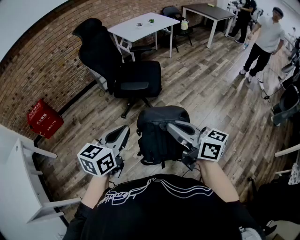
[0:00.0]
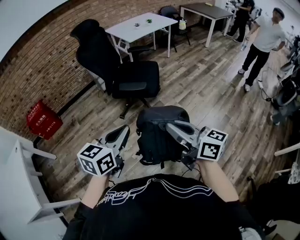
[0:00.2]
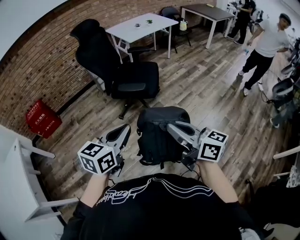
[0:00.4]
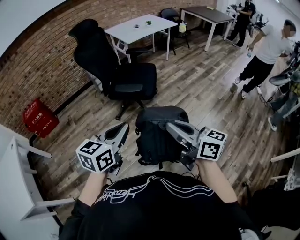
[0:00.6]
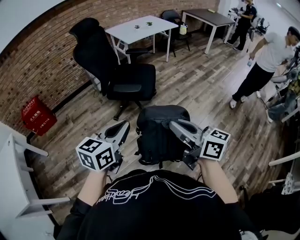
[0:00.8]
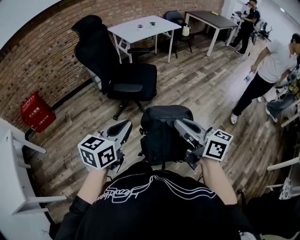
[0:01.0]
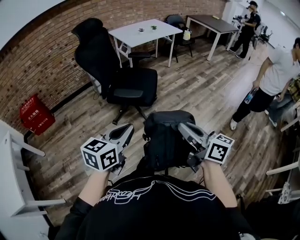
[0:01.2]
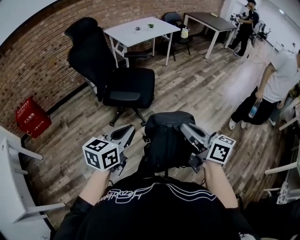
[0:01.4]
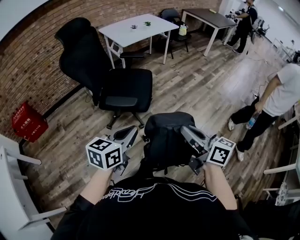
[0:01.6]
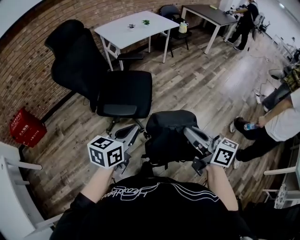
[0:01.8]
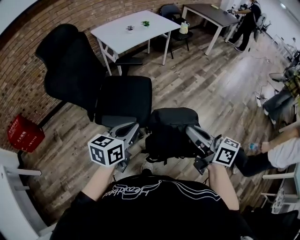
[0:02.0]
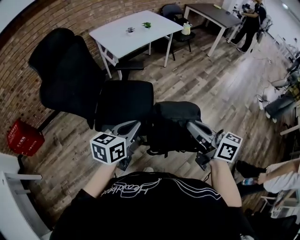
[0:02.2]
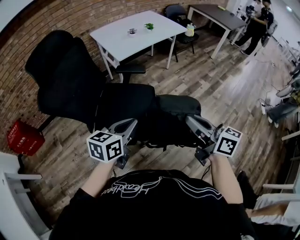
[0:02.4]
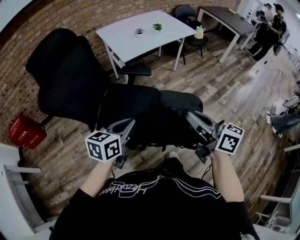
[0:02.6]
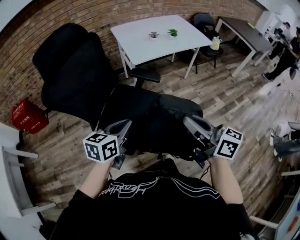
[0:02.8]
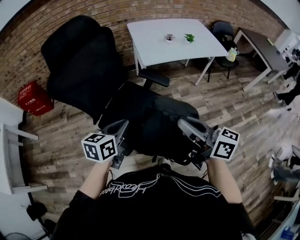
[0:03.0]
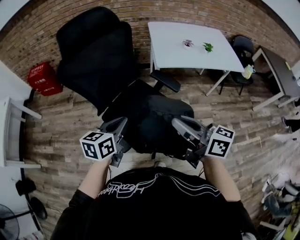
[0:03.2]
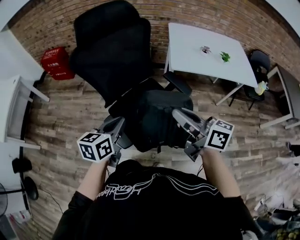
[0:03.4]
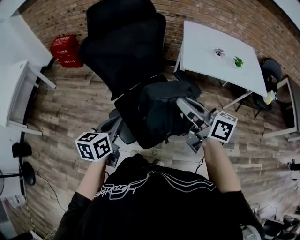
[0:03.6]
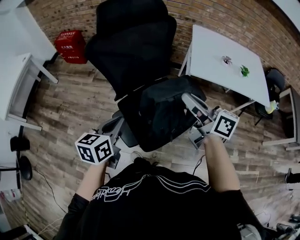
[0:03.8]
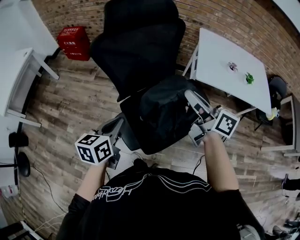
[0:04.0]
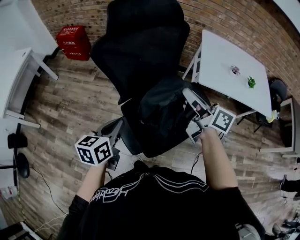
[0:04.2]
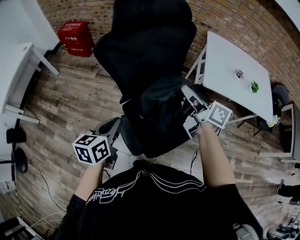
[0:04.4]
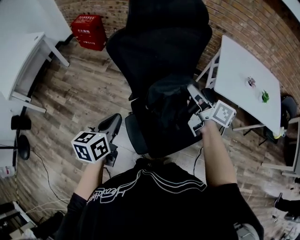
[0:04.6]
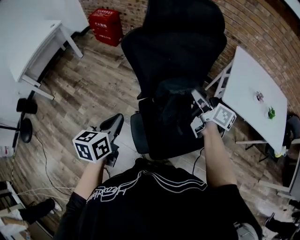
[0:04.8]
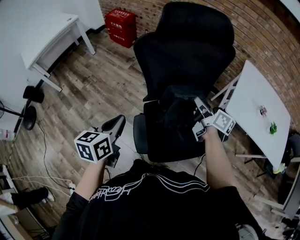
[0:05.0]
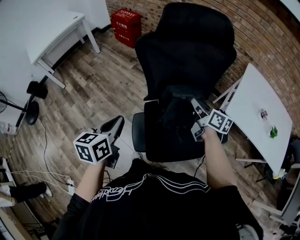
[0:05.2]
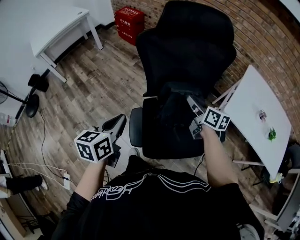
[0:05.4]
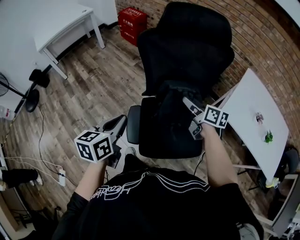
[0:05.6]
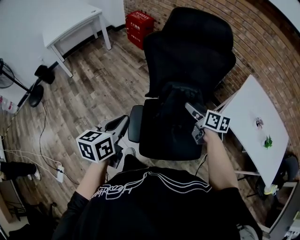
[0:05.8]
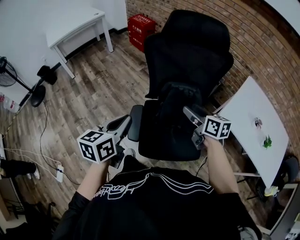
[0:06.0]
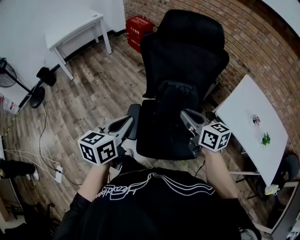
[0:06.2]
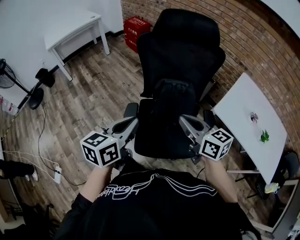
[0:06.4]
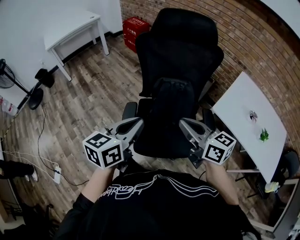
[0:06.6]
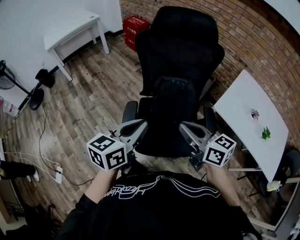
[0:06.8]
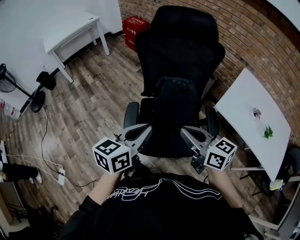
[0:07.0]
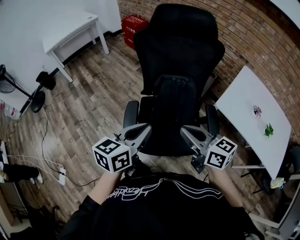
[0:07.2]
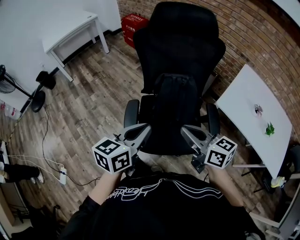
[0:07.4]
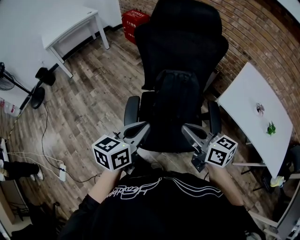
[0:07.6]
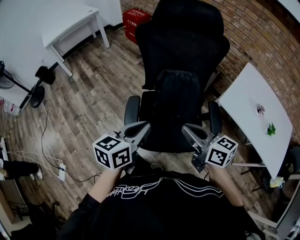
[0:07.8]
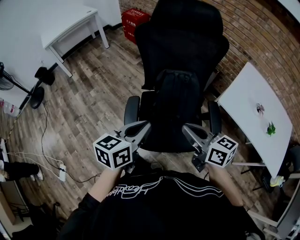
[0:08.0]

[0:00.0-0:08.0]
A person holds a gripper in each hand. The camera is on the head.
0:00.0 to 0:01.6: The left gripper shifts about 20 cm forward, to the right and downward, while the right gripper travels forward and to the right by roughly 20 cm.
0:01.6 to 0:03.2: The two grippers travel together, some 50 cm. The right gripper turns by approximately 40 degrees. The left gripper rotates about 40 degrees.
0:03.2 to 0:04.8: The right gripper moves approximately 35 cm, while the left gripper shifts by approximately 20 cm, and rotates roughly 40 degrees.
0:04.8 to 0:06.4: The right gripper heads backward, covering approximately 20 cm, rotates roughly 40 degrees, and opens and closes again. The left gripper travels backward and to the right by approximately 20 cm.
0:06.4 to 0:08.0: The right gripper shifts by some 5 cm. The left gripper moves roughly 5 cm.

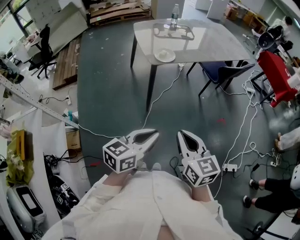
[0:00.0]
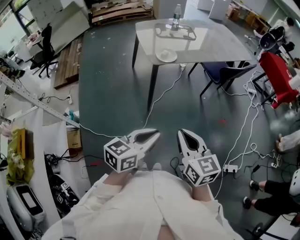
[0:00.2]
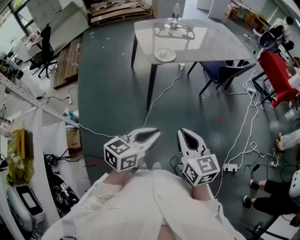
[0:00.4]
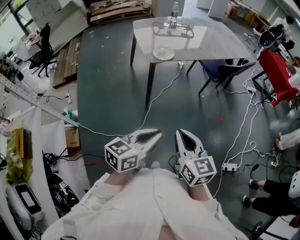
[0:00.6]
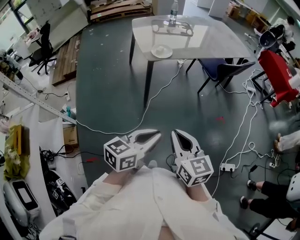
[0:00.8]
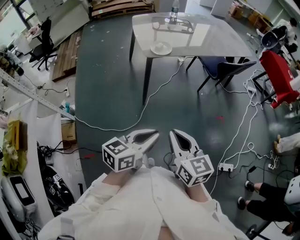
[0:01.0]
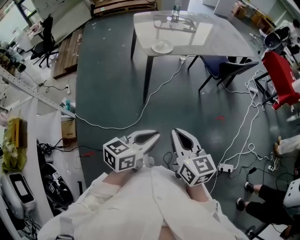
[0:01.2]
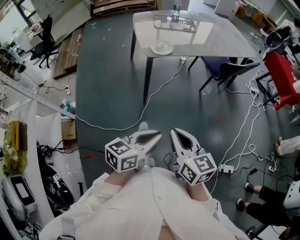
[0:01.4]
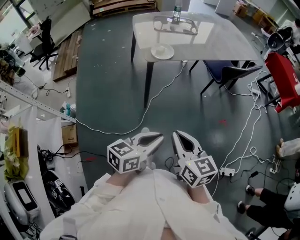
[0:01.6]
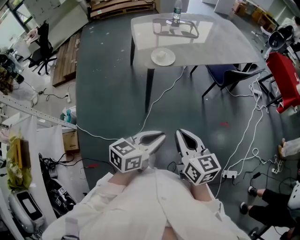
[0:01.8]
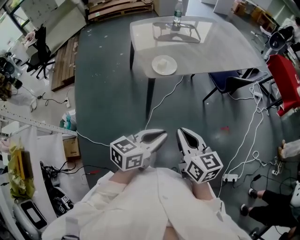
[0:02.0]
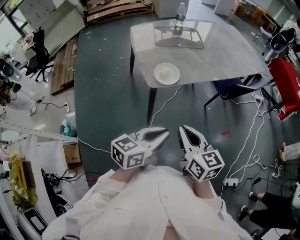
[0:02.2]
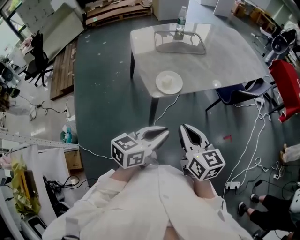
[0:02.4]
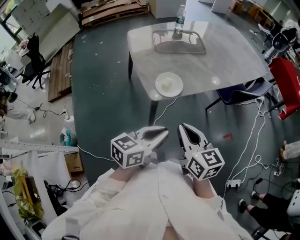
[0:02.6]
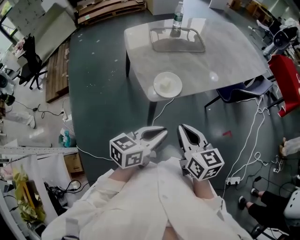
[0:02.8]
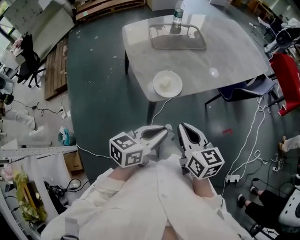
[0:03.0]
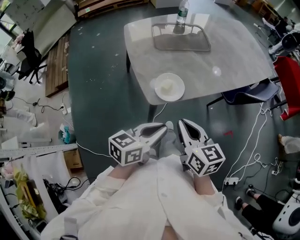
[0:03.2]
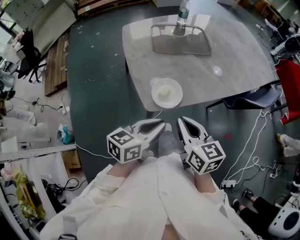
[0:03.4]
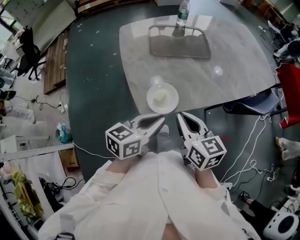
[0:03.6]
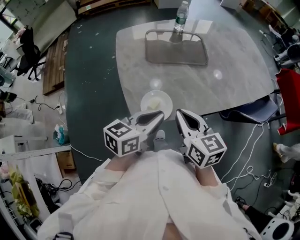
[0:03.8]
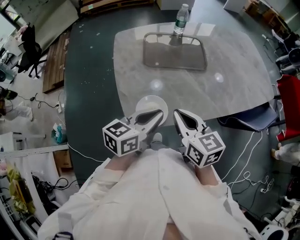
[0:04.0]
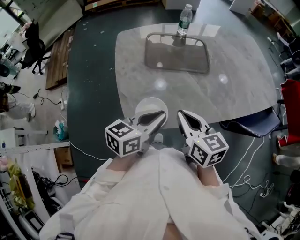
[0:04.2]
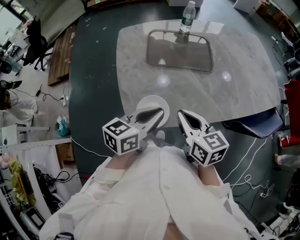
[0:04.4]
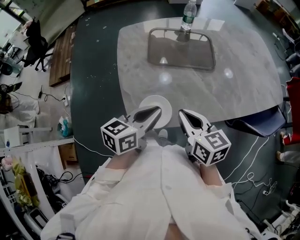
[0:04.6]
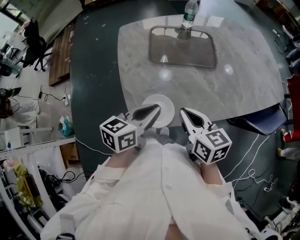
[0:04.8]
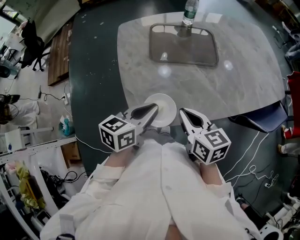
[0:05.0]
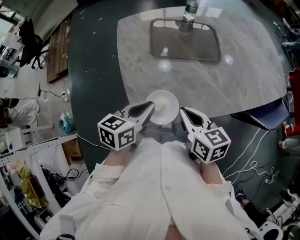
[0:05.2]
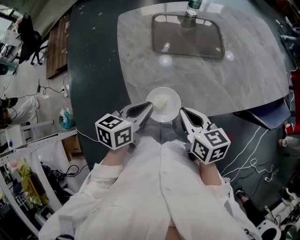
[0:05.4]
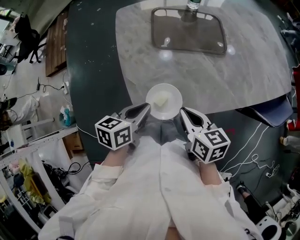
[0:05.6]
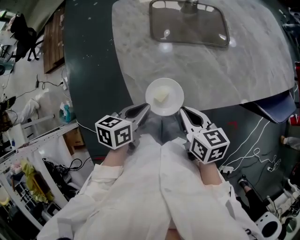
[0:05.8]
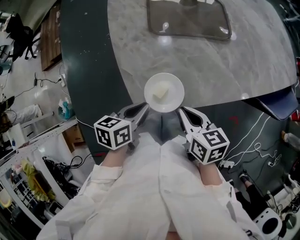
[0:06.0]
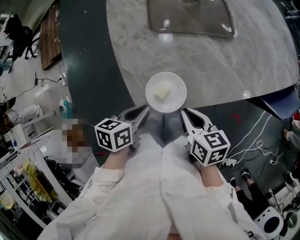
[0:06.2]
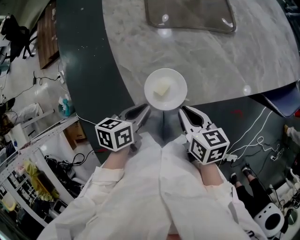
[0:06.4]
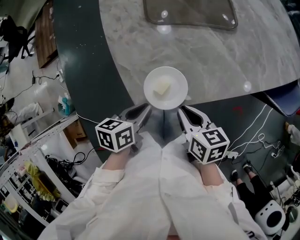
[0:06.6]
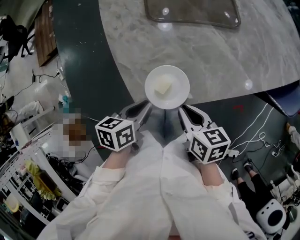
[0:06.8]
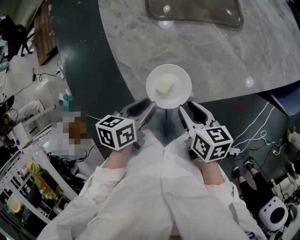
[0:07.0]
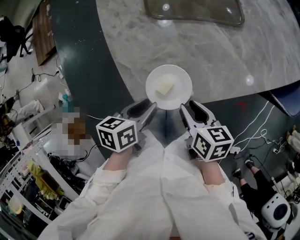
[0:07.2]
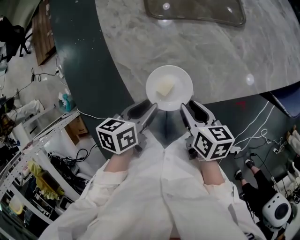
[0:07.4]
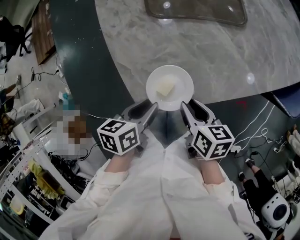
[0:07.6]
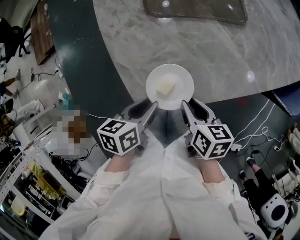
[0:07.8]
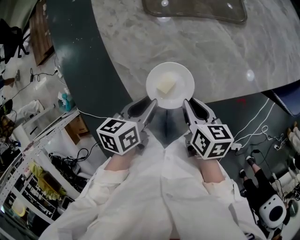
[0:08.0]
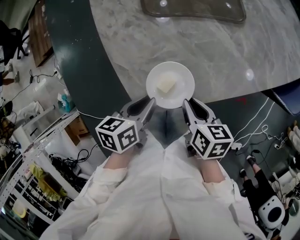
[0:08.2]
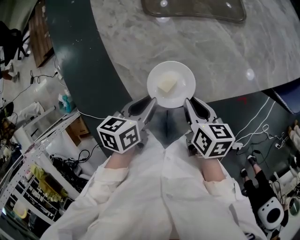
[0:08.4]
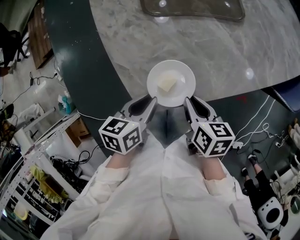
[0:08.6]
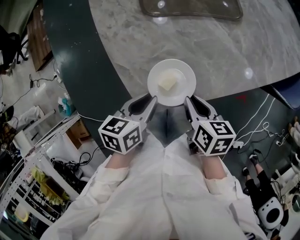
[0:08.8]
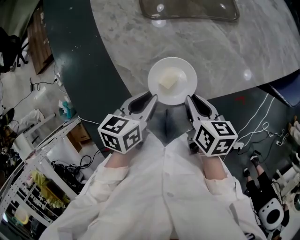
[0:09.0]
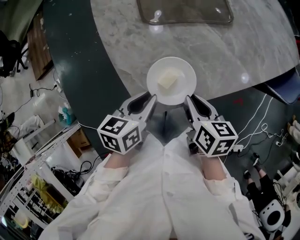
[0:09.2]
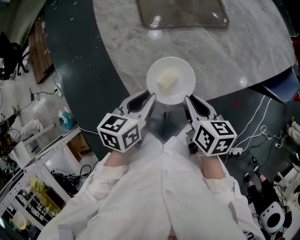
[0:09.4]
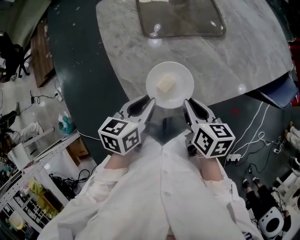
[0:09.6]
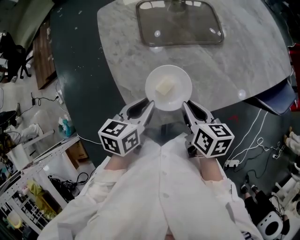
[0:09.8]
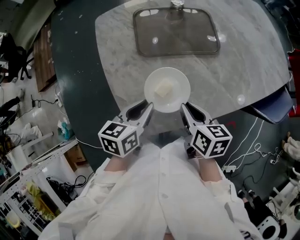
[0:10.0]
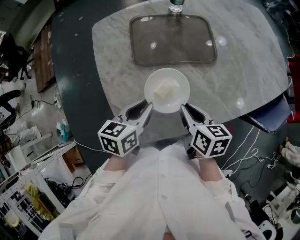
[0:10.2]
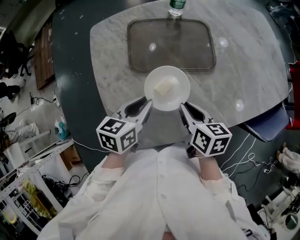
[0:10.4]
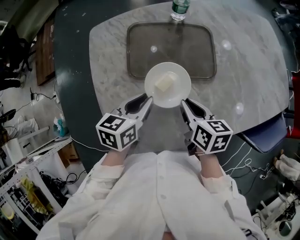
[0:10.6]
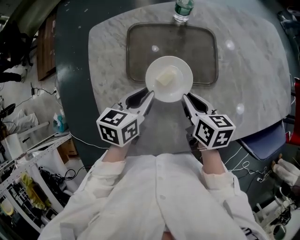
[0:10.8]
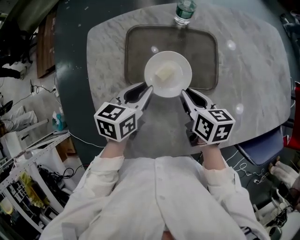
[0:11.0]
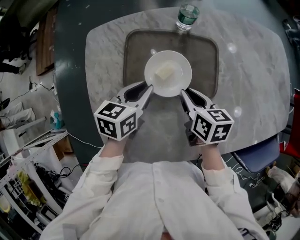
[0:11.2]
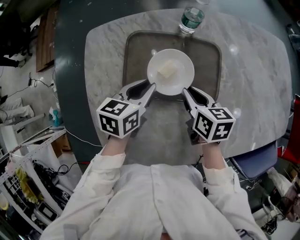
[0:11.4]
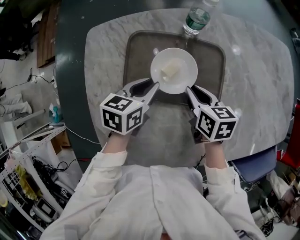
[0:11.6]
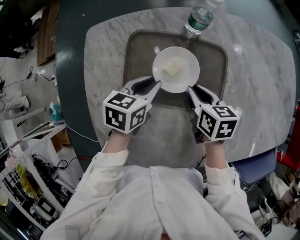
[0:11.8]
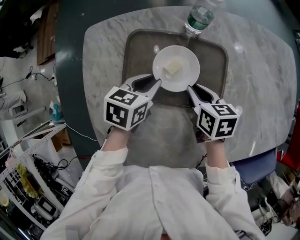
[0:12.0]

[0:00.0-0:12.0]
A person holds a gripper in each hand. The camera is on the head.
0:00.0 to 0:01.6: The right gripper moves forward, some 5 cm, while the left gripper goes about 10 cm to the right and forward.
0:01.6 to 0:03.0: The left gripper goes roughly 35 cm forward and to the left. The right gripper is displaced forward by about 30 cm.
0:03.0 to 0:04.4: The two grippers go approximately 25 cm forward.
0:04.4 to 0:06.0: The left gripper moves downward and to the left, roughly 15 cm, and swivels approximately 30 degrees; the right gripper goes some 10 cm downward, and swivels approximately 20 degrees.
0:06.0 to 0:07.6: The left gripper opens up. The right gripper goes about 5 cm downward, and opens its fingers.
0:07.6 to 0:09.0: The grippers make only small movements.
0:09.0 to 0:10.4: The two grippers go about 15 cm forward.
0:10.4 to 0:12.0: The two grippers go some 20 cm forward.

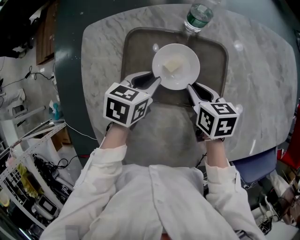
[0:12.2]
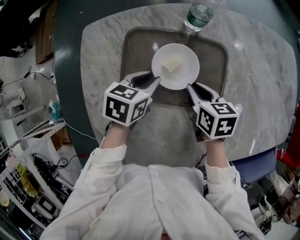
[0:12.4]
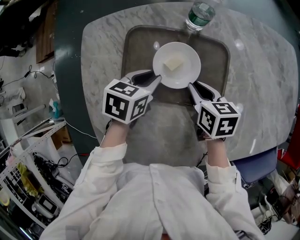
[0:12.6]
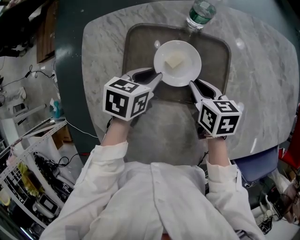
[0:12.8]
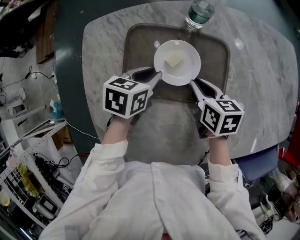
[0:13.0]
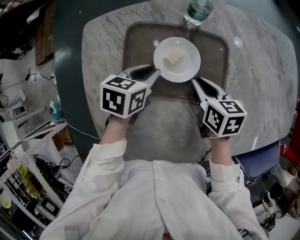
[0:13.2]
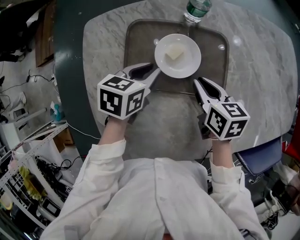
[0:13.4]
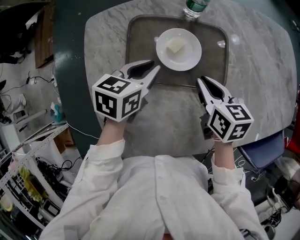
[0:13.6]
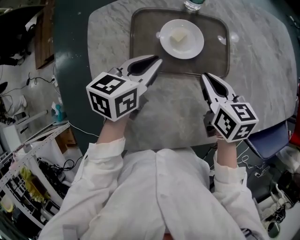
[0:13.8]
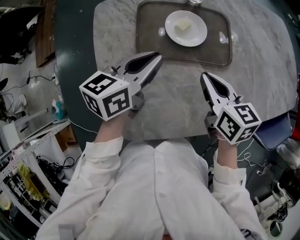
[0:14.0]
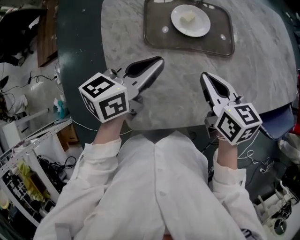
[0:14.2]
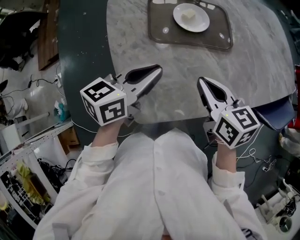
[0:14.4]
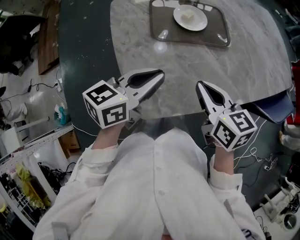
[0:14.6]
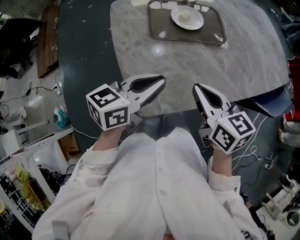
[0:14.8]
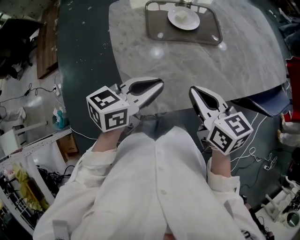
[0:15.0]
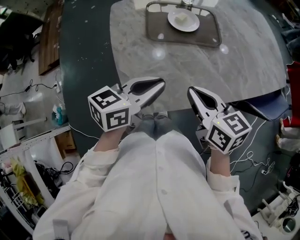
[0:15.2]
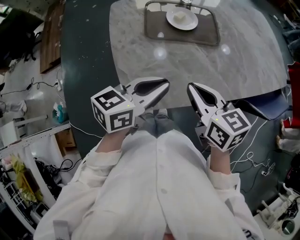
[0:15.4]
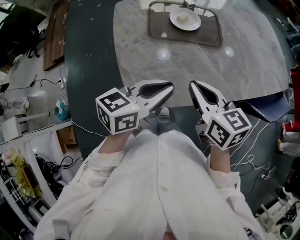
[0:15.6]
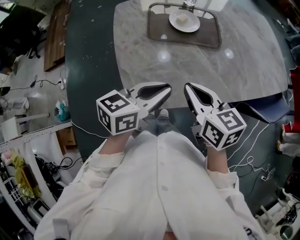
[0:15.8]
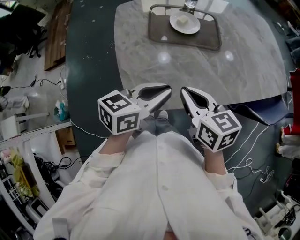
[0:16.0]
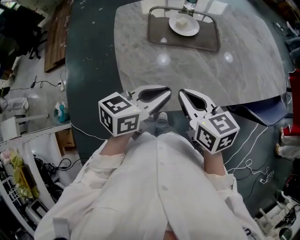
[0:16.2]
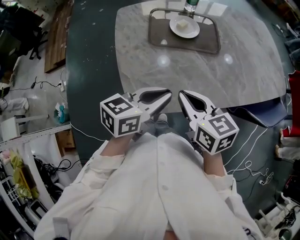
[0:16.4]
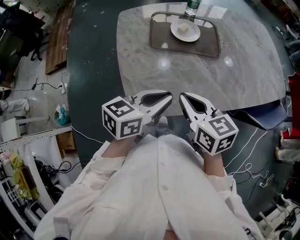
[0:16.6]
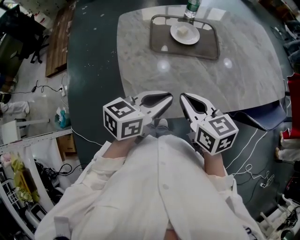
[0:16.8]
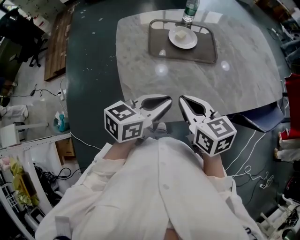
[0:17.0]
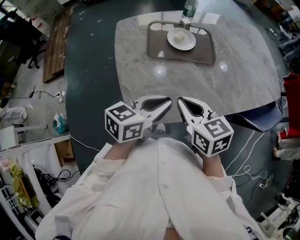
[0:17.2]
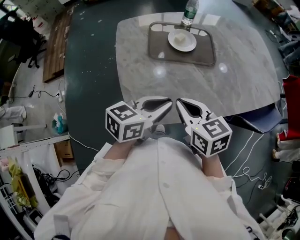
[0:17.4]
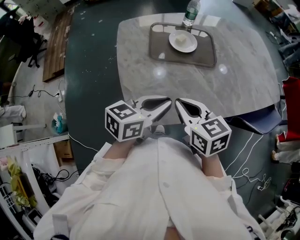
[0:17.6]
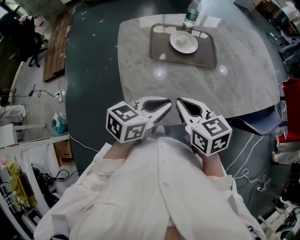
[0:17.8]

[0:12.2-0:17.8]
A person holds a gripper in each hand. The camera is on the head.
0:12.2 to 0:13.6: The right gripper moves upward, about 5 cm. Meanwhile the left gripper moves some 5 cm.
0:13.6 to 0:15.0: The grippers both shift backward by some 30 cm. The left gripper turns by some 30 degrees.
0:15.0 to 0:16.4: The left gripper travels to the right by approximately 5 cm.
0:16.4 to 0:17.8: The grippers make only small movements.
